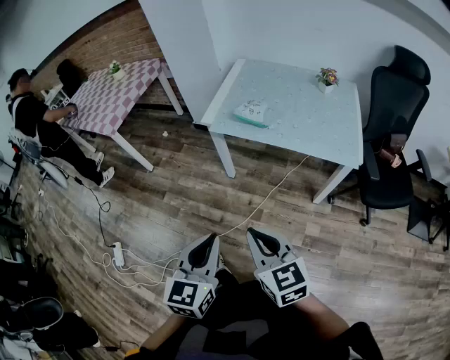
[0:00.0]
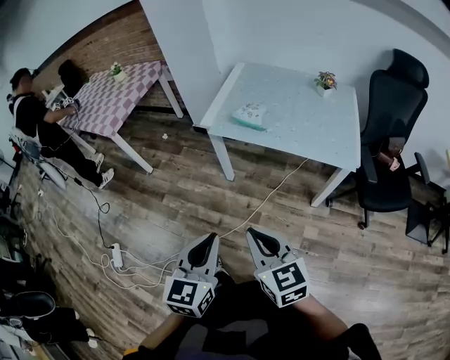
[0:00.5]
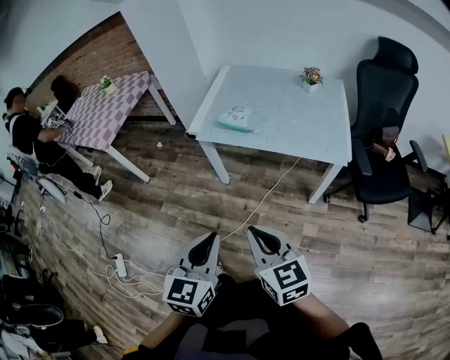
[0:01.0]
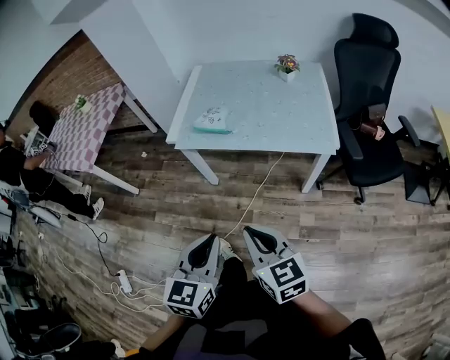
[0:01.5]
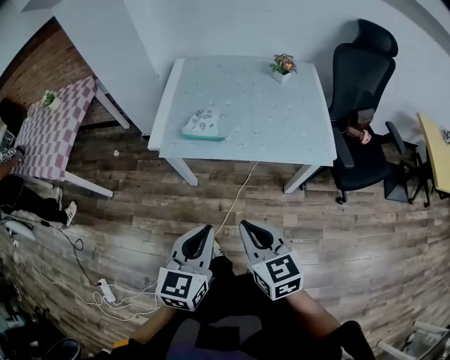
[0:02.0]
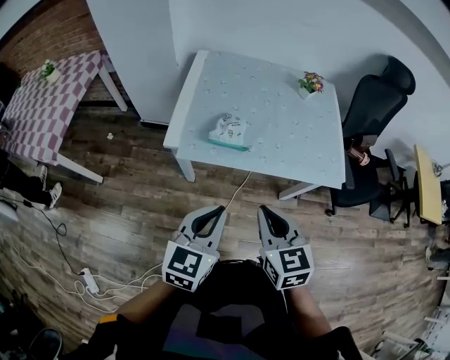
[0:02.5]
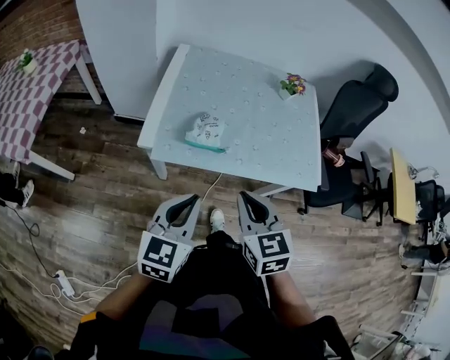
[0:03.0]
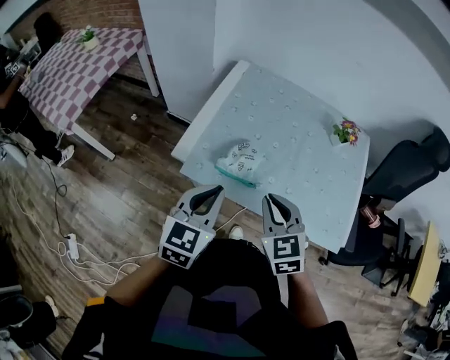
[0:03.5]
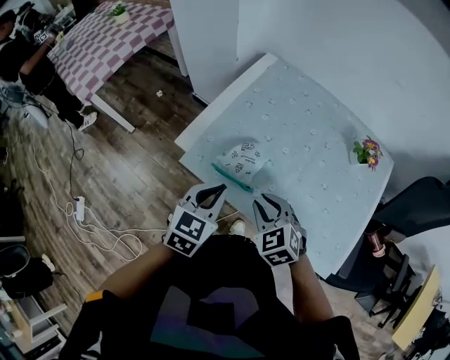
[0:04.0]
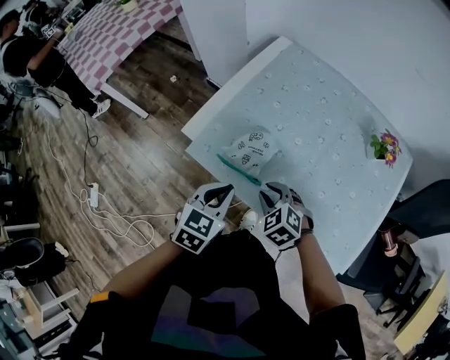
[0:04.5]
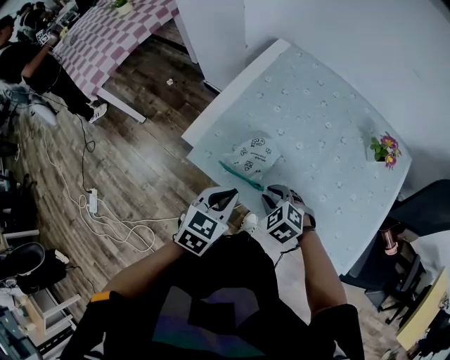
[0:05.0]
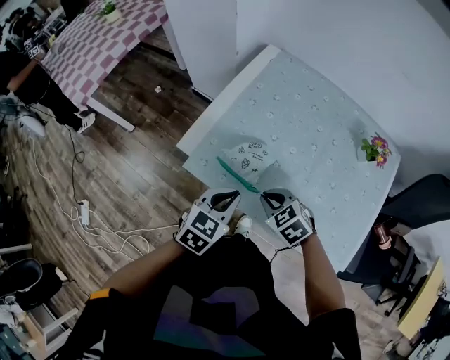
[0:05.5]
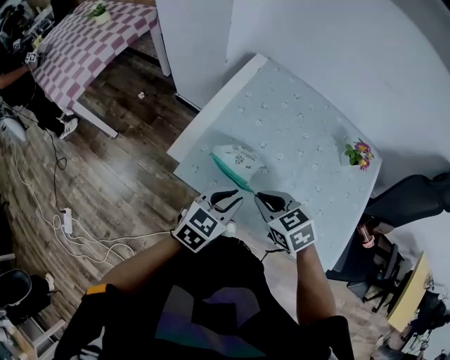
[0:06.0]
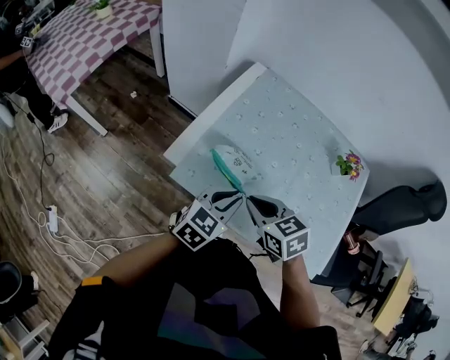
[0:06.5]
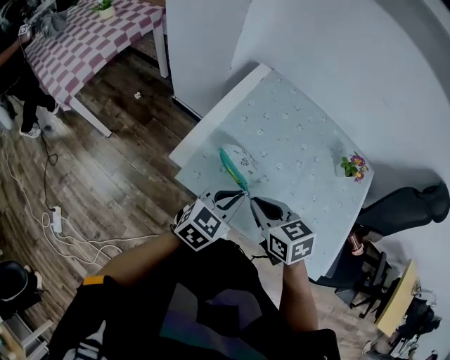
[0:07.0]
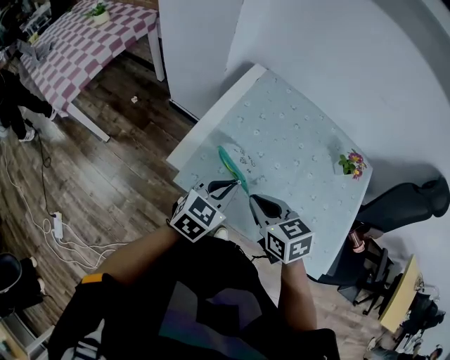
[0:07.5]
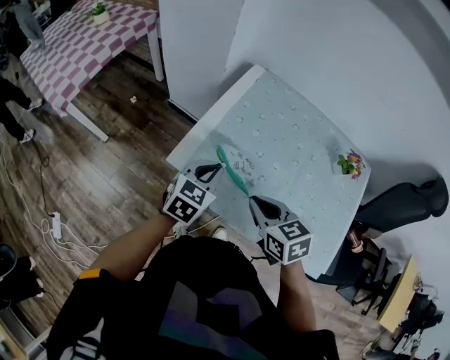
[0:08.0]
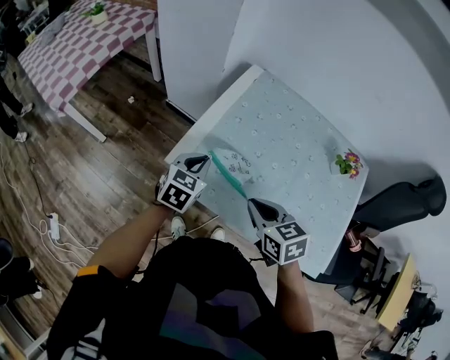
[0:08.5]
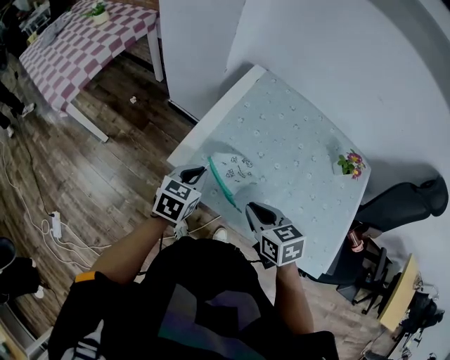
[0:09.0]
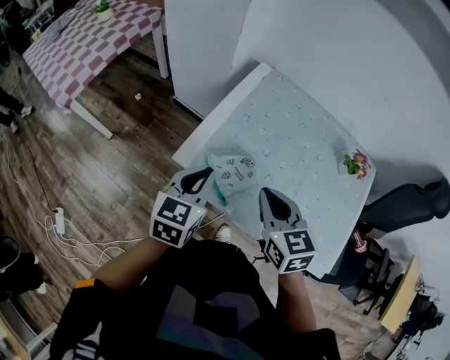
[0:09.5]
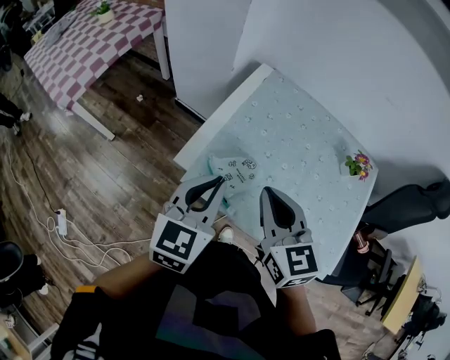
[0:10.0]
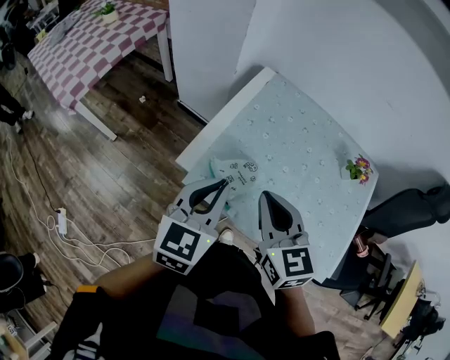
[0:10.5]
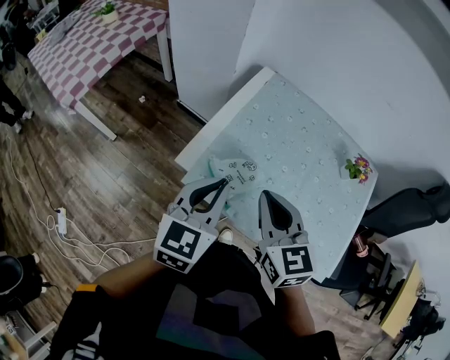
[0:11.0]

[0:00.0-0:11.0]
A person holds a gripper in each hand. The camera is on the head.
0:00.0 to 0:02.0: The left gripper travels forward by roughly 15 cm. The right gripper moves forward and to the right, approximately 15 cm.
0:02.0 to 0:03.5: Both grippers travel together forward, roughly 25 cm. The right gripper changes its angle by about 30 degrees.
0:03.5 to 0:05.5: The right gripper is displaced downward and forward by some 15 cm, and changes its angle by about 40 degrees. The left gripper goes roughly 10 cm downward and to the right.
0:05.5 to 0:07.5: The right gripper travels upward by some 10 cm, and swivels some 30 degrees, while the left gripper is displaced forward by approximately 5 cm.
0:07.5 to 0:09.0: The left gripper heads to the left, covering roughly 10 cm.
0:09.0 to 0:11.0: Both grippers travel together upward, approximately 15 cm. The right gripper rotates some 30 degrees.

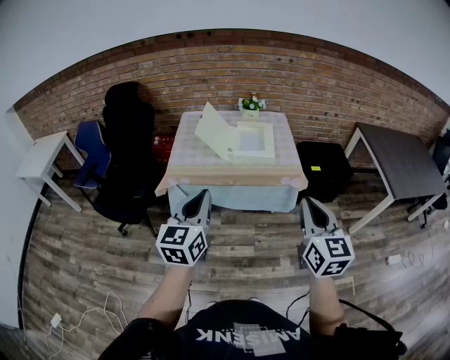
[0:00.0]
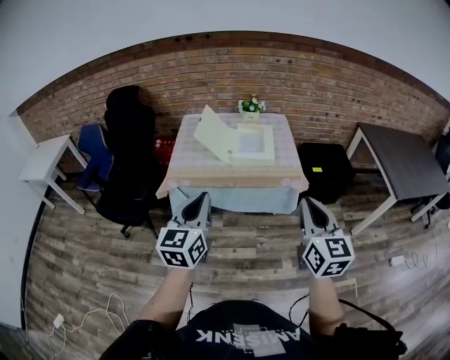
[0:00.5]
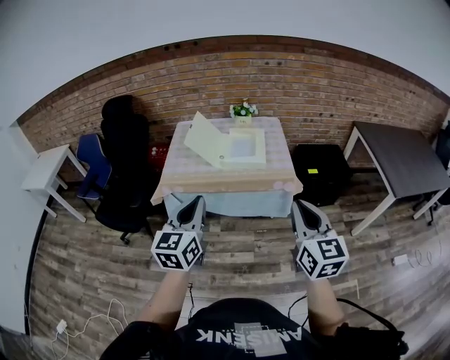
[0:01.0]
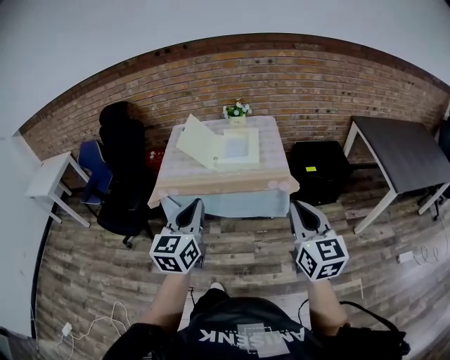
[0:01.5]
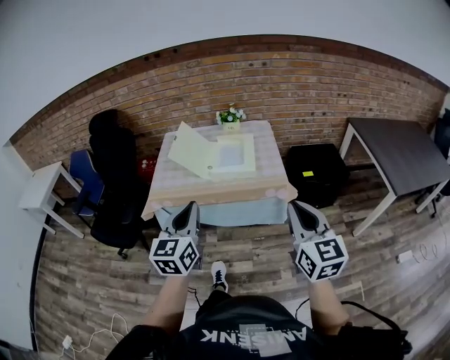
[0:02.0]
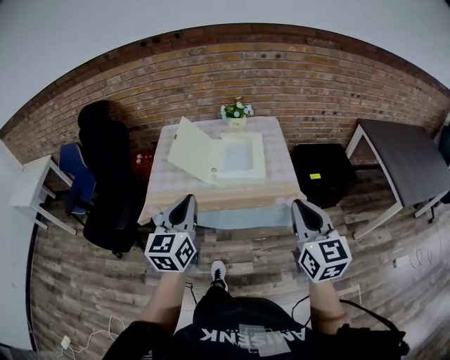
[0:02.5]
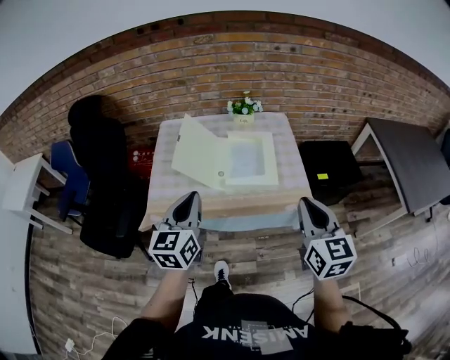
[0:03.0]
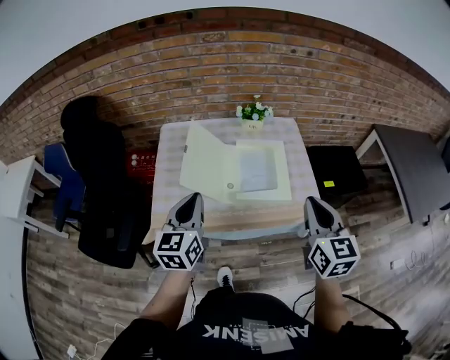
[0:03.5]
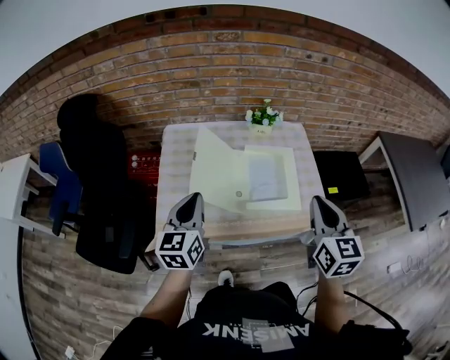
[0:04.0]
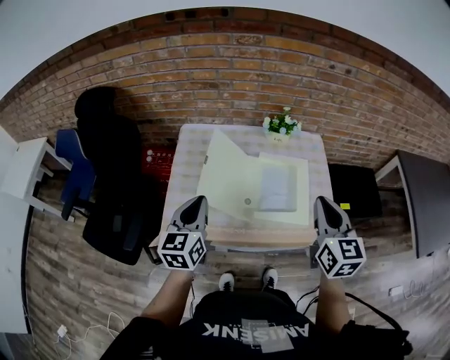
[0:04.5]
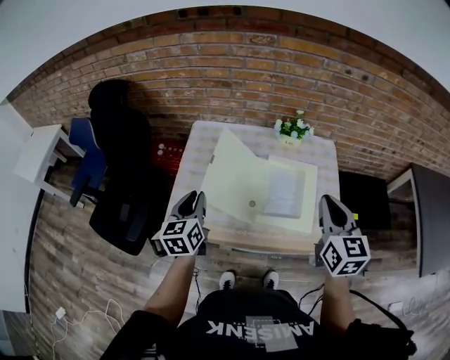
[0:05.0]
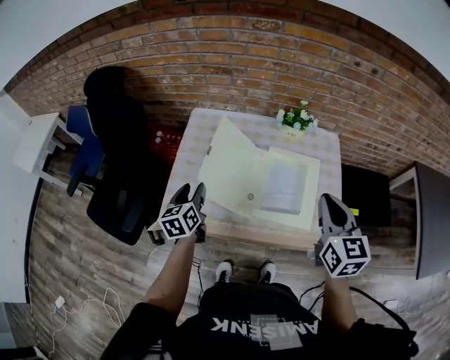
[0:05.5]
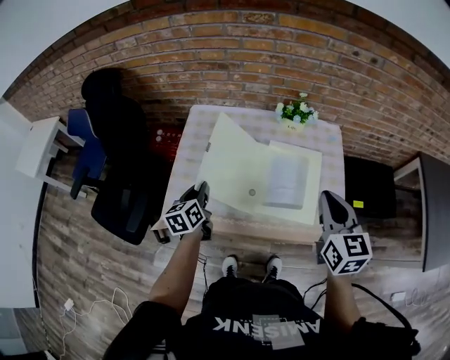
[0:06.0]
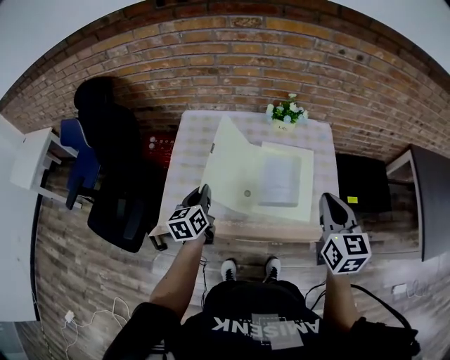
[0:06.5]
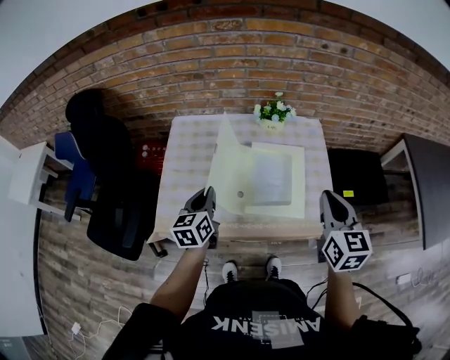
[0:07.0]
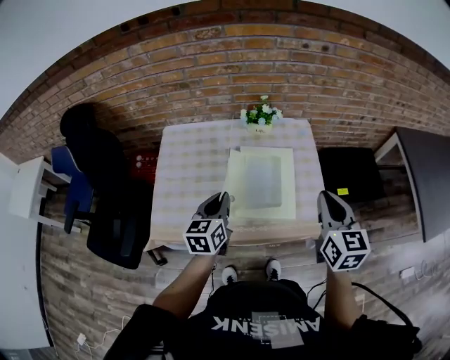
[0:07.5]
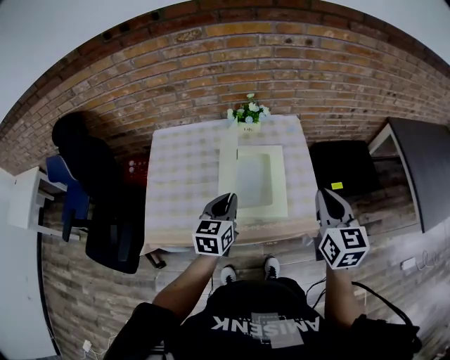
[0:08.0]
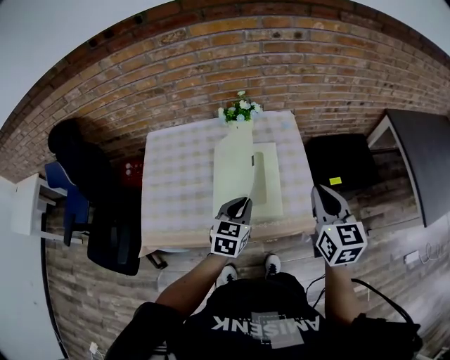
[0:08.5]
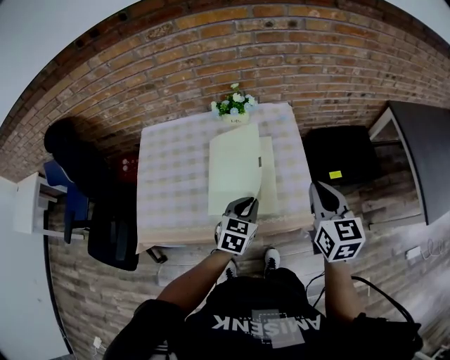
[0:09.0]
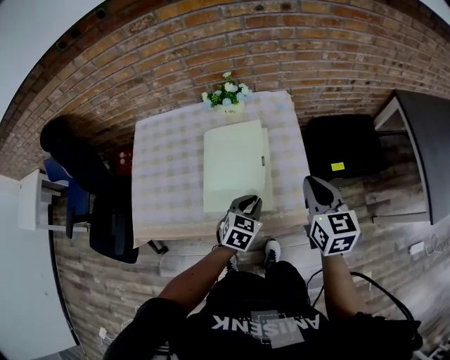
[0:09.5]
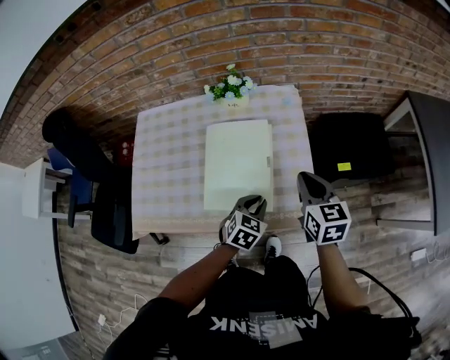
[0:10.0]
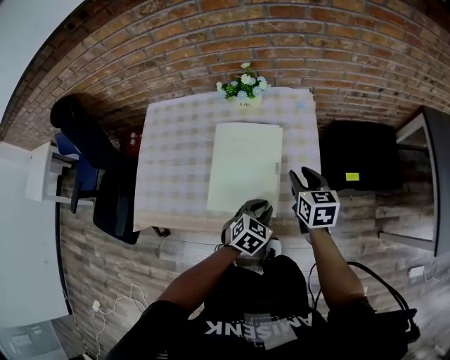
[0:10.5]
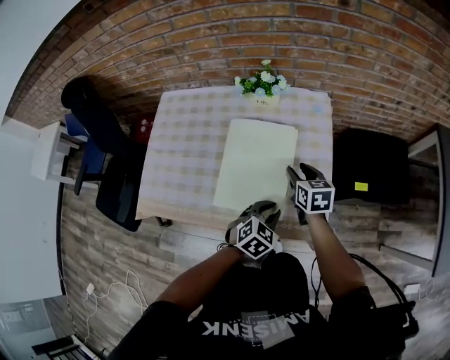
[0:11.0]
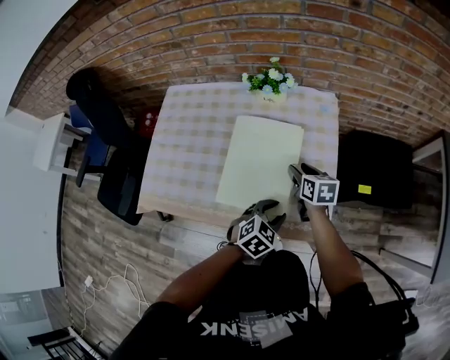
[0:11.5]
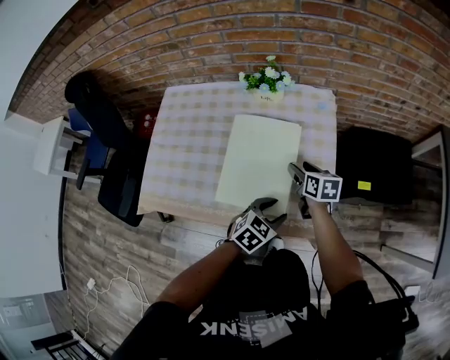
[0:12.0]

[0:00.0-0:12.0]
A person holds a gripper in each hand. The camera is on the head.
0:00.0 to 0:02.0: The two grippers go roughly 10 cm to the right and forward.
0:02.0 to 0:04.0: The two grippers travel together, forward and to the left, about 40 cm.
0:04.0 to 0:06.0: The right gripper moves forward, roughly 10 cm. Meanwhile the left gripper moves downward and forward, approximately 15 cm, turns by approximately 30 degrees, and opens, then closes once more.
0:06.0 to 0:08.0: The right gripper heads to the right, covering roughly 10 cm; the left gripper goes about 25 cm to the right, and changes its angle by approximately 30 degrees.
0:08.0 to 0:10.0: The left gripper travels to the right and downward by some 25 cm, and turns by about 30 degrees, while the right gripper shifts about 20 cm downward and forward.
0:10.0 to 0:12.0: The left gripper opens up; the right gripper goes some 20 cm downward and forward, changes its angle by approximately 30 degrees, and opens its fingers.

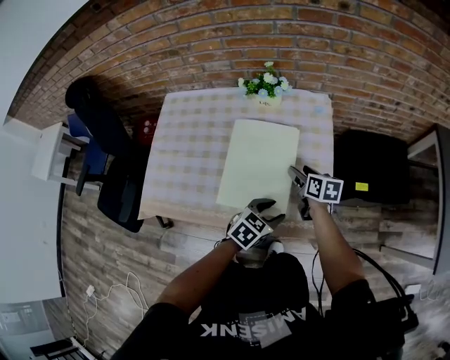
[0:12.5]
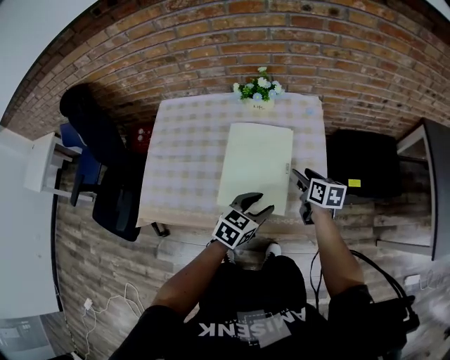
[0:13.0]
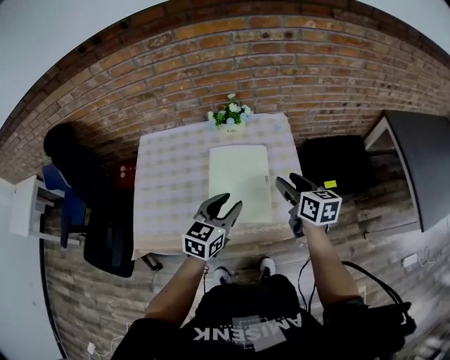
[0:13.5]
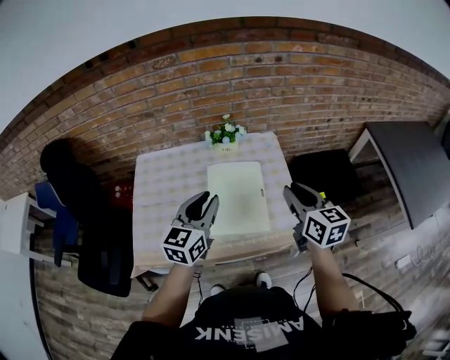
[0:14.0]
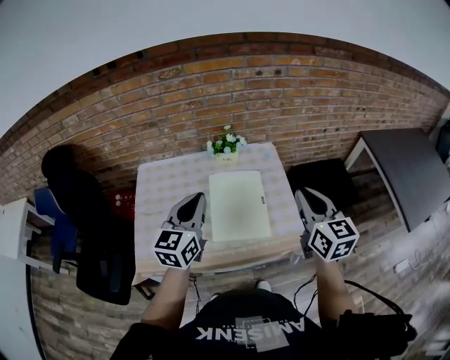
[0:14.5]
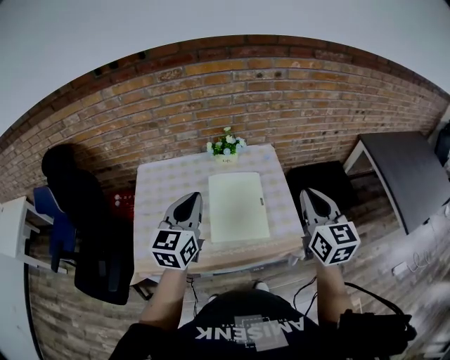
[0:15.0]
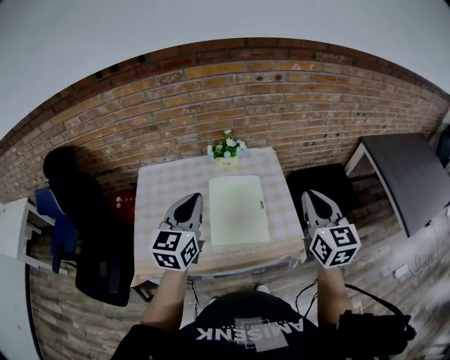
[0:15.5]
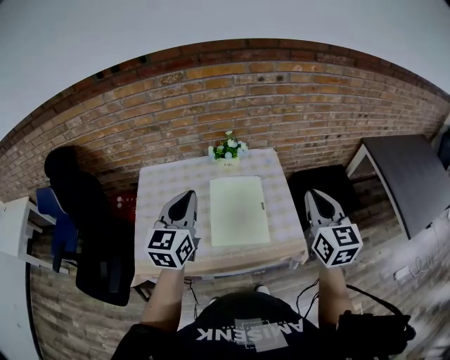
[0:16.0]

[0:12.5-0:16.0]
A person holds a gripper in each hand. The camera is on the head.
0:12.5 to 0:14.5: The right gripper goes roughly 40 cm upward and backward, rotates some 40 degrees, and closes; the left gripper shifts about 40 cm upward and to the left, points its fingers approximately 40 degrees further upward, and closes.
0:14.5 to 0:16.0: The grippers move only a little.
